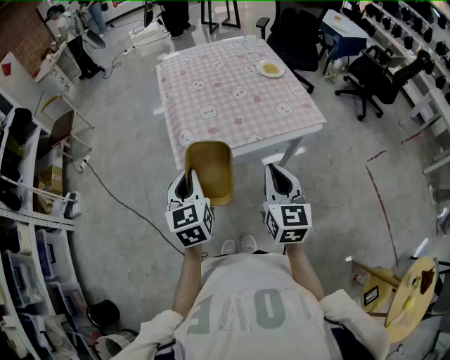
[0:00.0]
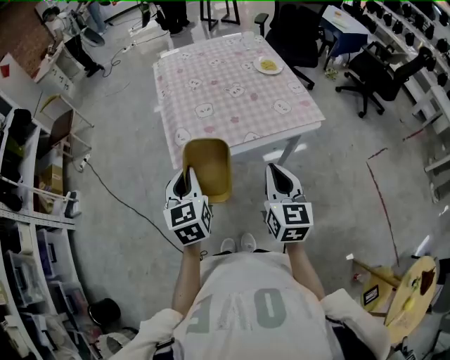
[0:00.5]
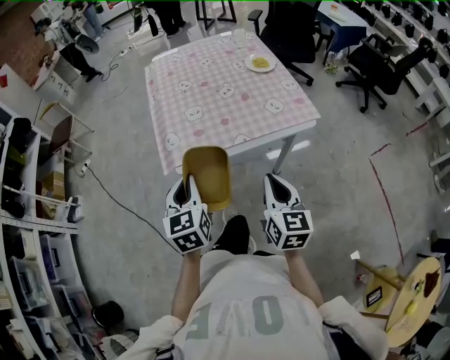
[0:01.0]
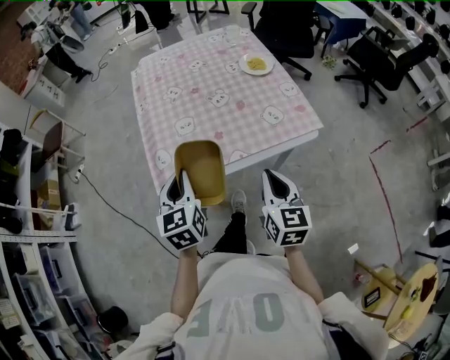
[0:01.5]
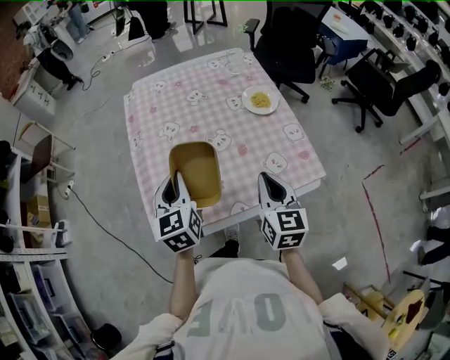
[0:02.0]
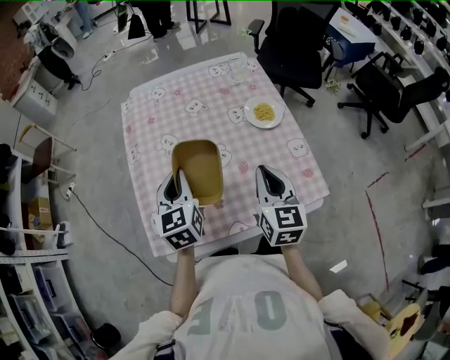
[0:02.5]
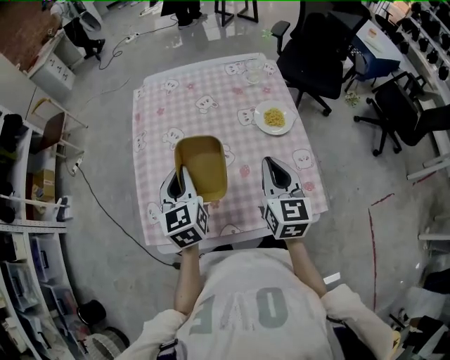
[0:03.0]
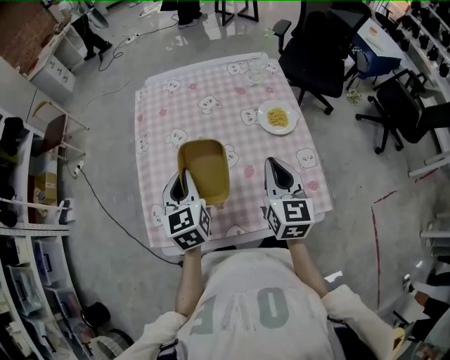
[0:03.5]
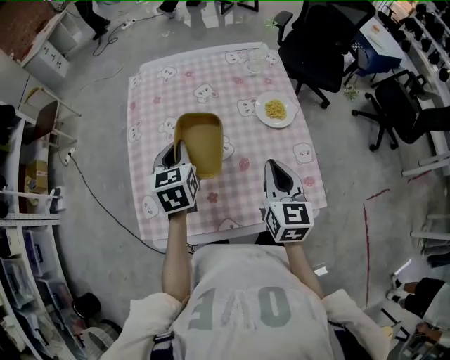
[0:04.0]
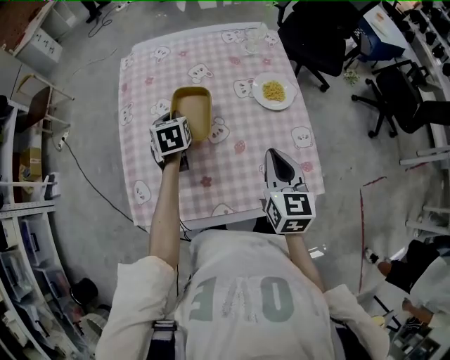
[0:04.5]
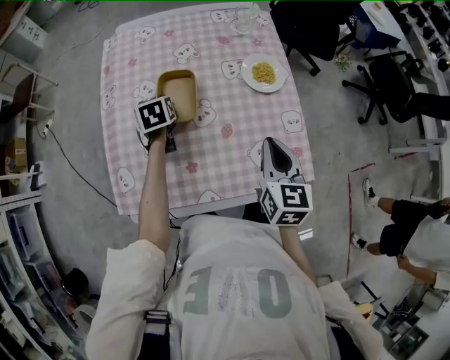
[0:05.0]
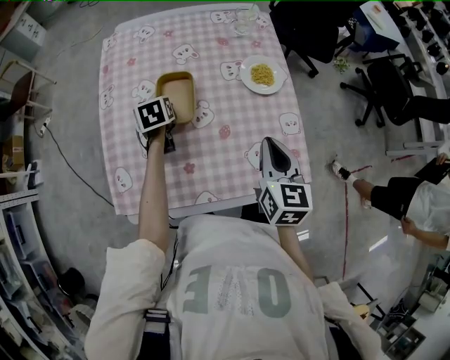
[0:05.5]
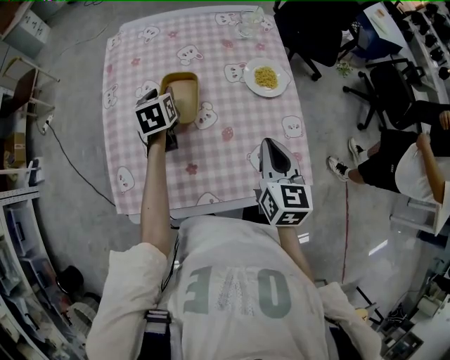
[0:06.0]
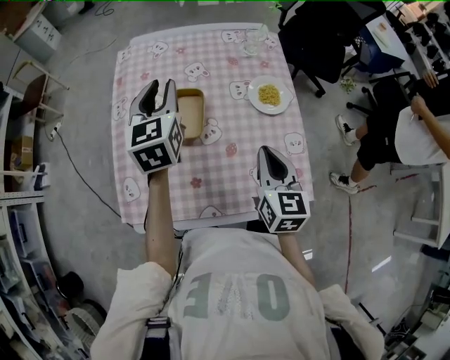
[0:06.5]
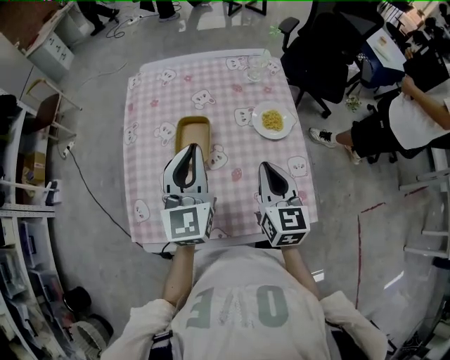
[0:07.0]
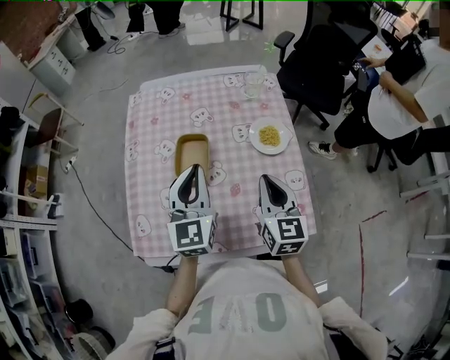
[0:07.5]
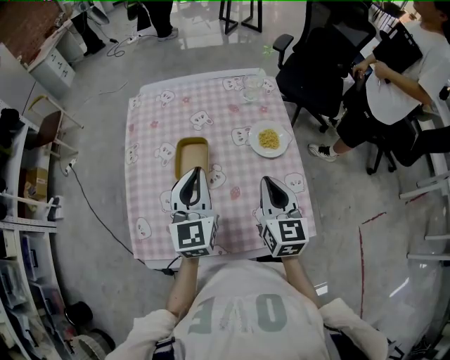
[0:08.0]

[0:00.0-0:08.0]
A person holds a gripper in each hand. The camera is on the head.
0:00.0 to 0:02.0: The two grippers go some 25 cm forward.
0:02.0 to 0:04.0: The right gripper goes roughly 10 cm forward and to the right; the left gripper moves forward, roughly 15 cm.
0:04.0 to 0:06.0: The left gripper shifts some 15 cm downward and forward, and opens its fingers.
0:06.0 to 0:08.0: The left gripper heads upward, backward and to the right, covering roughly 20 cm, points its fingers roughly 30 degrees further upward, and closes up, while the right gripper changes place by approximately 5 cm.

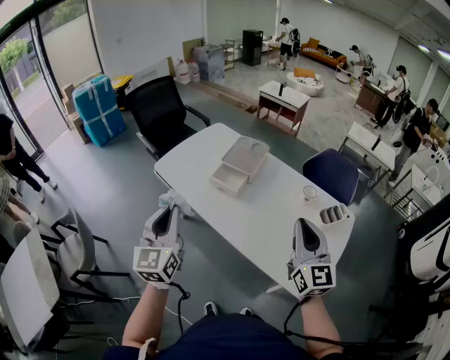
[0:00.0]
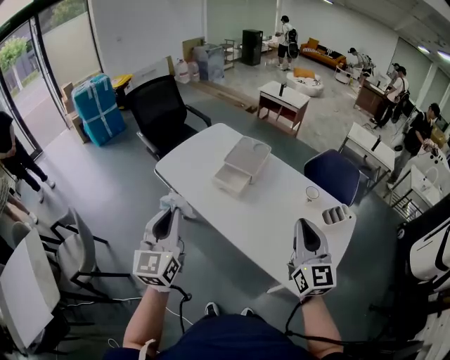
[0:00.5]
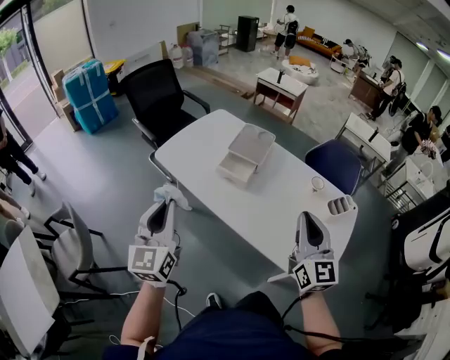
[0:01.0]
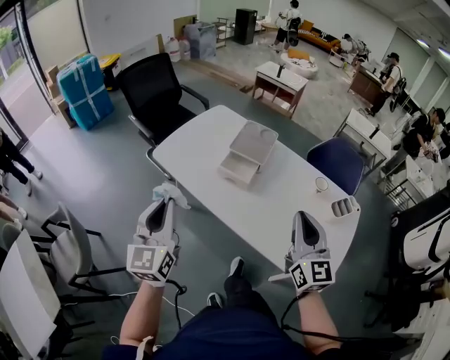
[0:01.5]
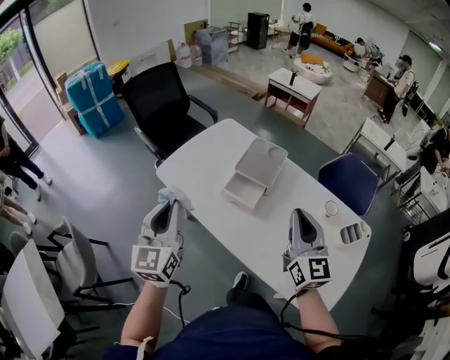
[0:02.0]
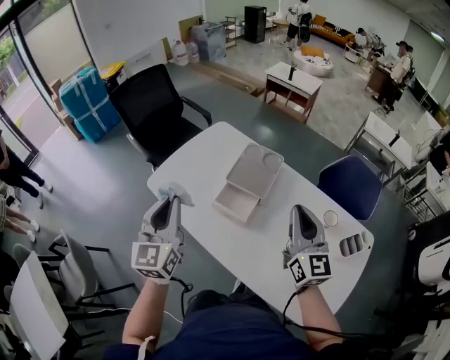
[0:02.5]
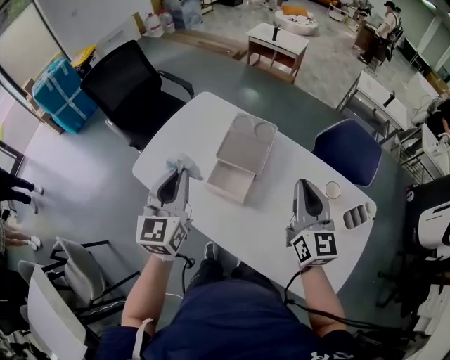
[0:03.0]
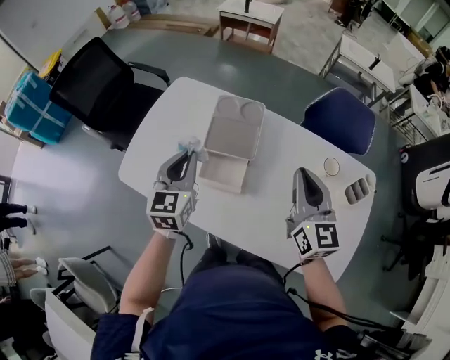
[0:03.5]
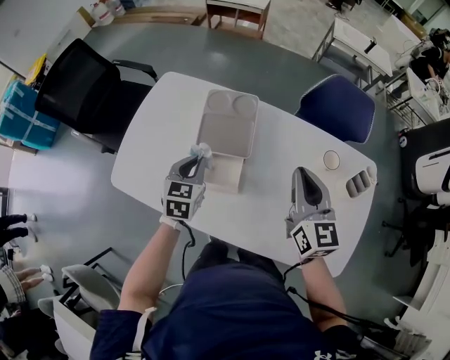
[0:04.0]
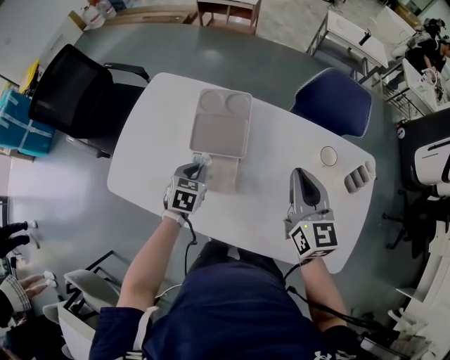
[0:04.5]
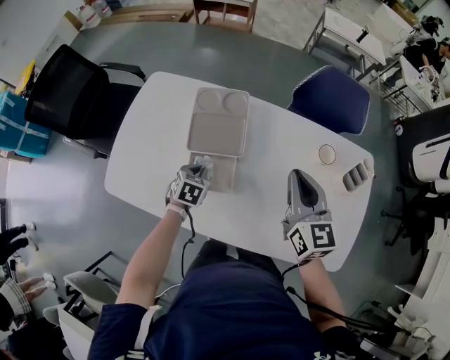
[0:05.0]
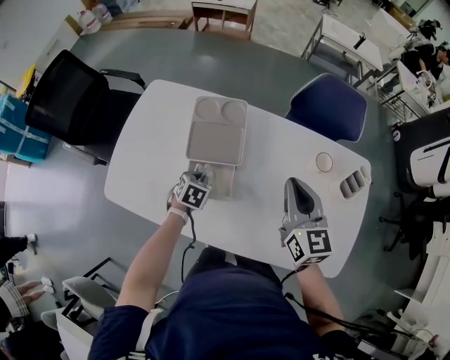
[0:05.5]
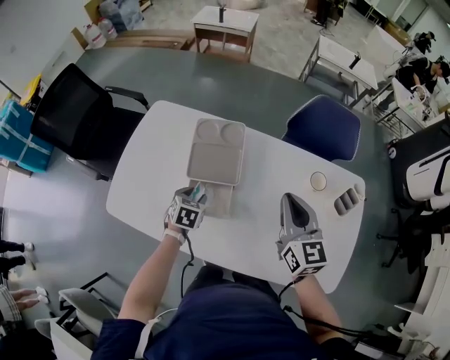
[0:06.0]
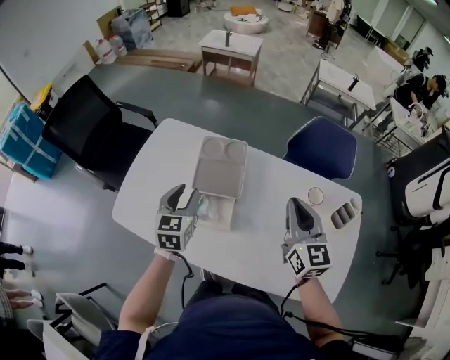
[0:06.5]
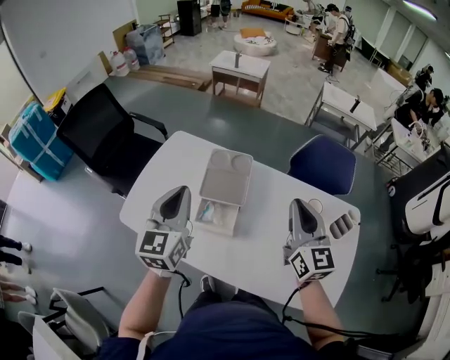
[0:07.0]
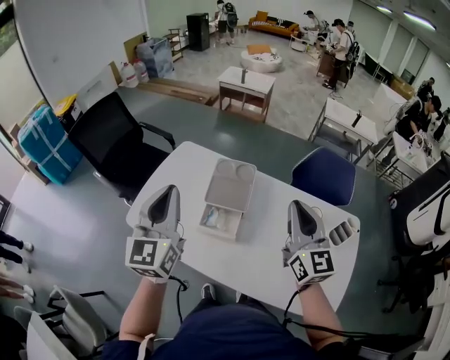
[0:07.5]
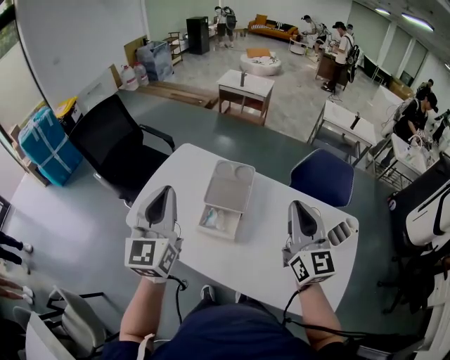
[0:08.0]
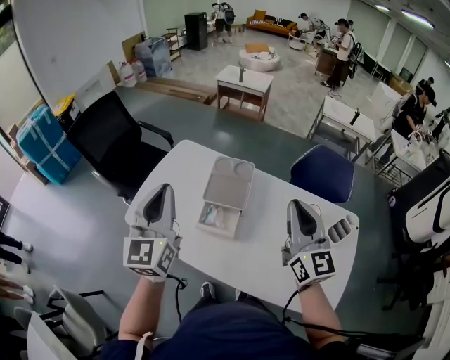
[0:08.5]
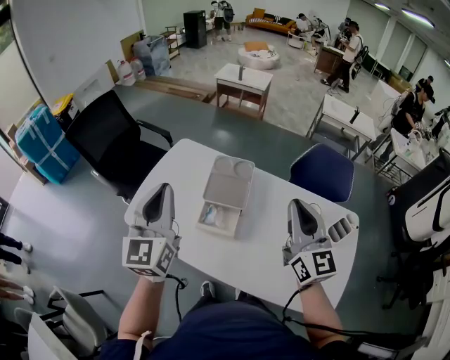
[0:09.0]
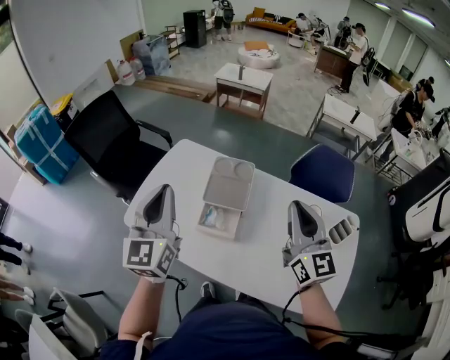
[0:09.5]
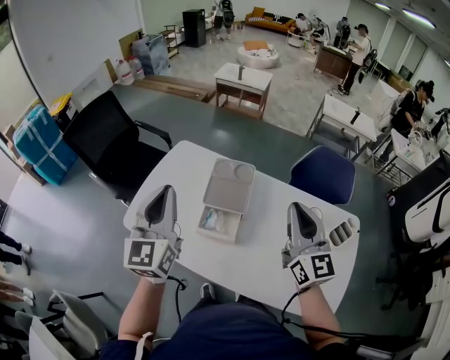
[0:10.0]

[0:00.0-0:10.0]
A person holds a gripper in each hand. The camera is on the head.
0:00.0 to 0:02.0: The grippers both shift forward and to the left by about 20 cm.
0:02.0 to 0:04.0: The left gripper shifts approximately 40 cm forward, downward and to the right, and angles its fingers downward, by some 40 degrees. Meanwhile the right gripper heads forward and downward, covering about 20 cm, and swivels approximately 20 degrees.
0:04.0 to 0:06.0: The left gripper moves downward, some 10 cm, changes its angle by roughly 20 degrees, and opens.
0:06.0 to 0:08.0: The left gripper travels upward by approximately 40 cm, tips its fingers upward by about 60 degrees, and closes, while the right gripper moves upward, some 15 cm, and rotates about 20 degrees.
0:08.0 to 0:10.0: The grippers stay close to where they were, moving slightly.

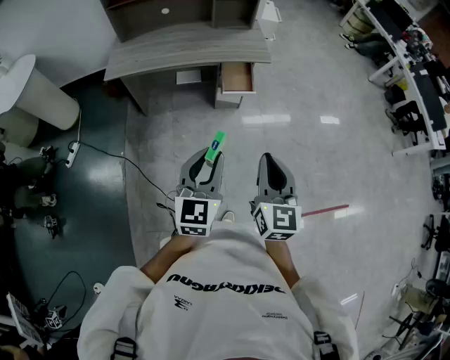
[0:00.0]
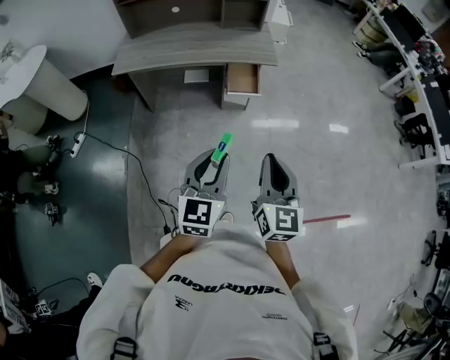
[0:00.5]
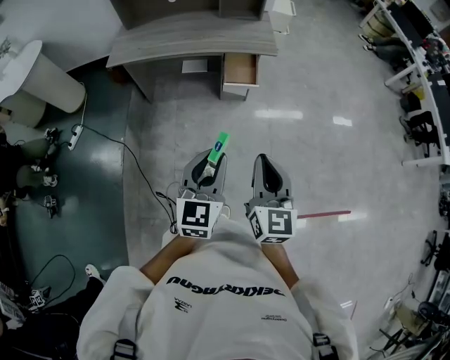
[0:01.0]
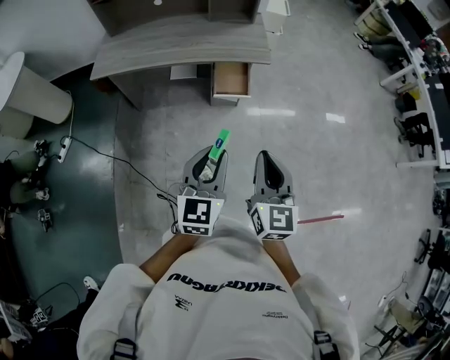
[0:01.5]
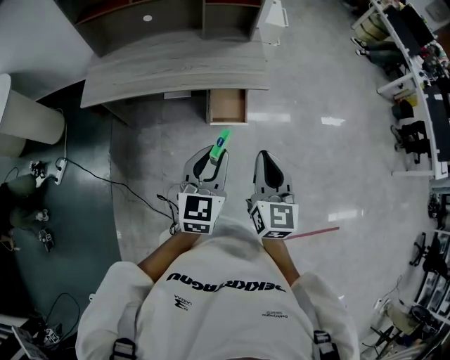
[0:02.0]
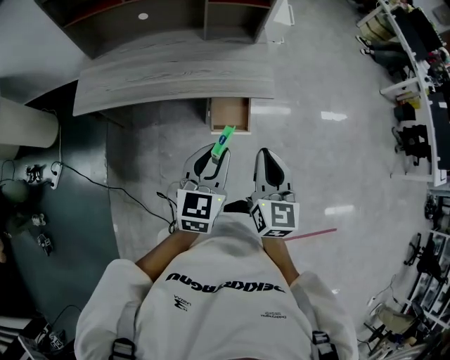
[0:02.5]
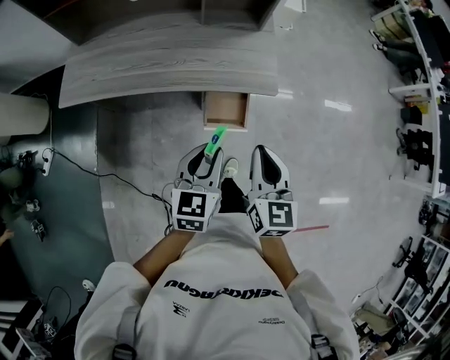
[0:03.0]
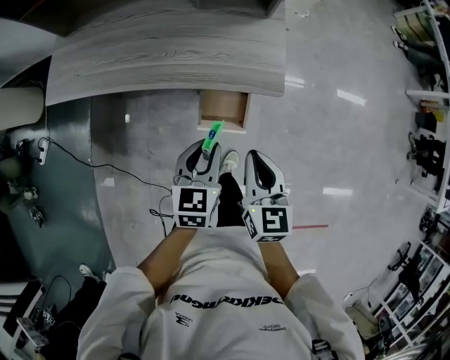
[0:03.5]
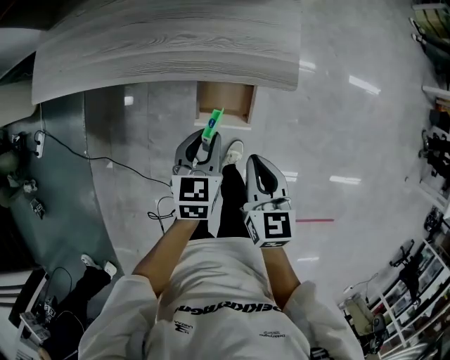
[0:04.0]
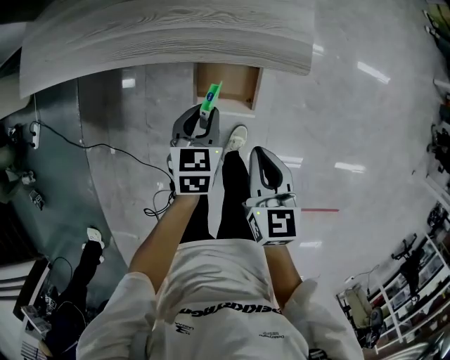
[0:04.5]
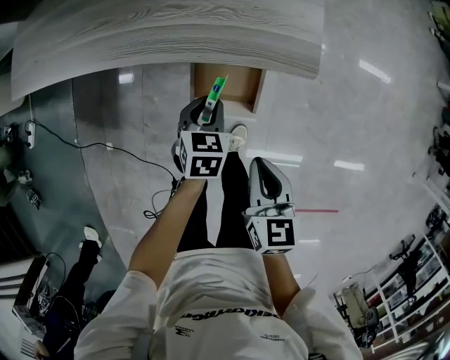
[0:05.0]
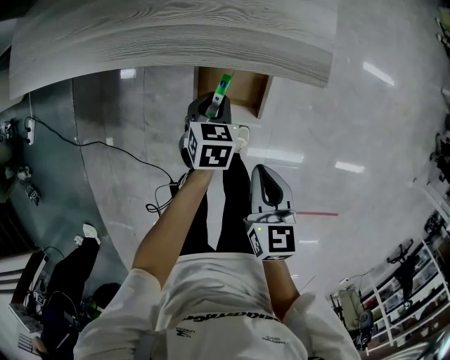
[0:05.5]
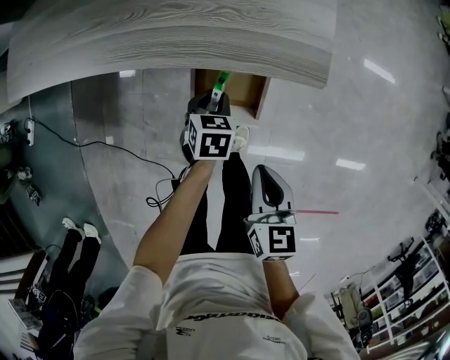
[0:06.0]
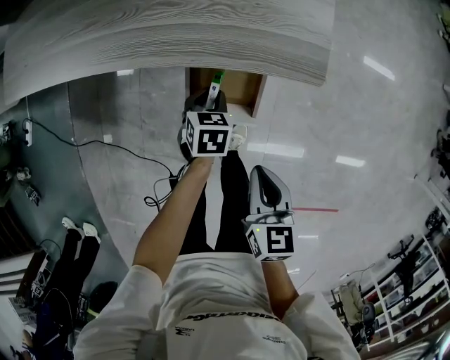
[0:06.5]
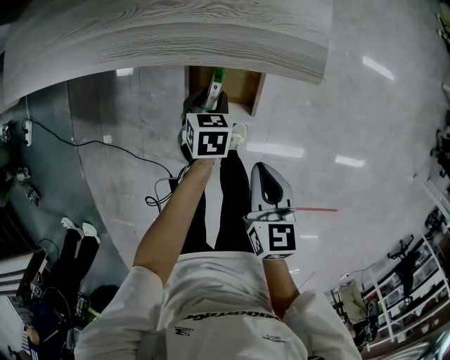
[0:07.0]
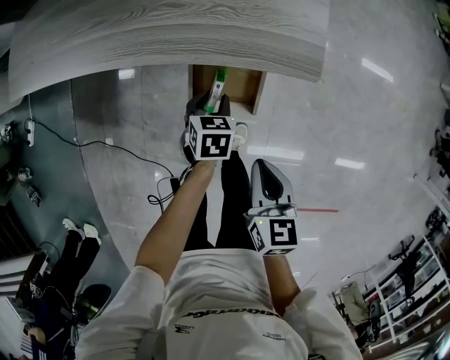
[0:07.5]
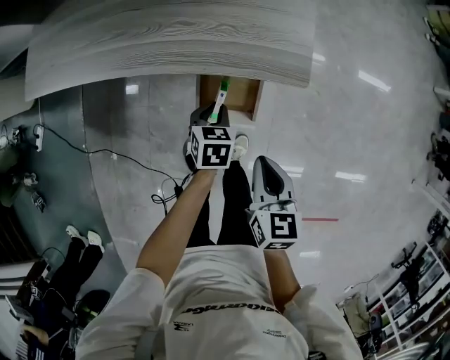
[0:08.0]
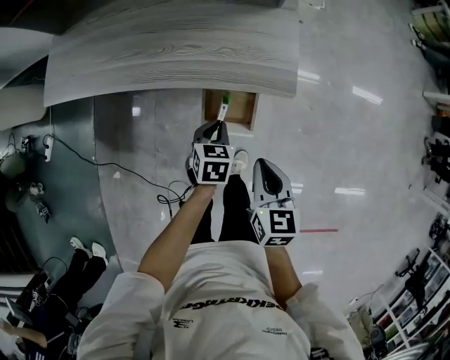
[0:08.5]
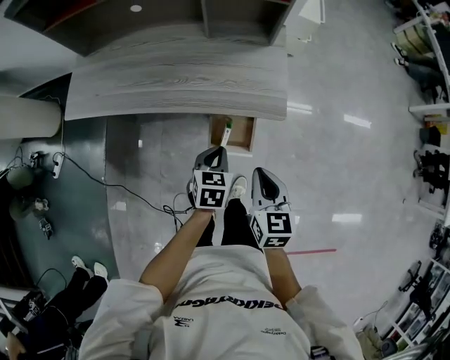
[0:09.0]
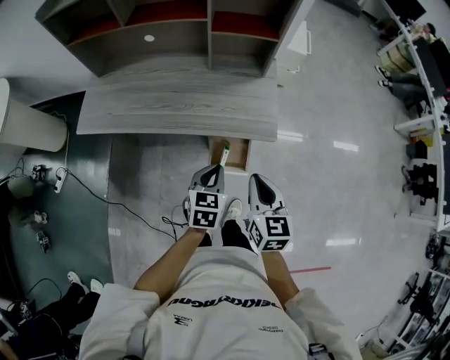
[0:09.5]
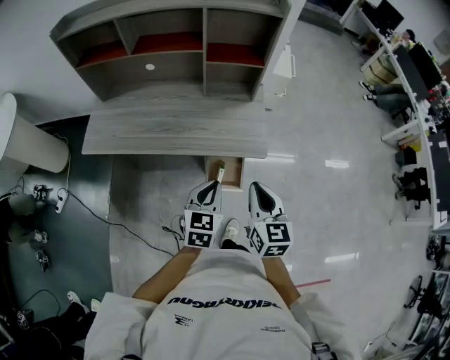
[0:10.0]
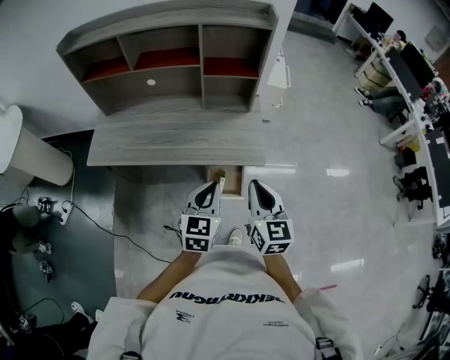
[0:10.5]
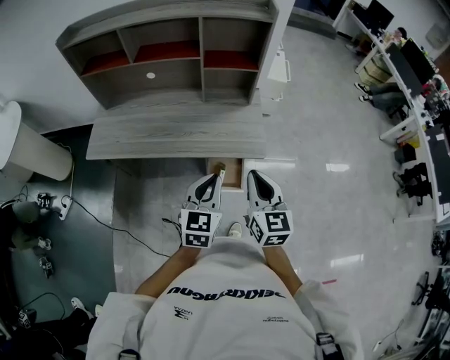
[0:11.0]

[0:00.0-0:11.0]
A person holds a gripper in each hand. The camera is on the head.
0:00.0 to 0:02.0: The two grippers go about 30 cm forward.
0:02.0 to 0:03.5: The two grippers go about 30 cm forward and downward. The left gripper rotates approximately 20 degrees, while the right gripper rotates about 20 degrees.
0:03.5 to 0:05.5: Both grippers move downward, approximately 25 cm. The left gripper turns by roughly 20 degrees.
0:05.5 to 0:07.5: The grippers make only small movements.
0:07.5 to 0:09.0: The grippers both shift upward by about 20 cm. The left gripper closes its fingers.
0:09.0 to 0:11.0: Both grippers travel together upward, approximately 25 cm. The left gripper turns by some 30 degrees. The right gripper swivels approximately 20 degrees.
